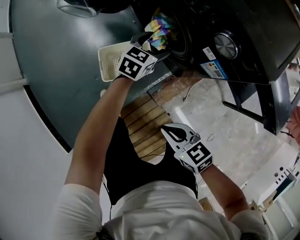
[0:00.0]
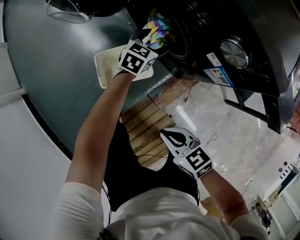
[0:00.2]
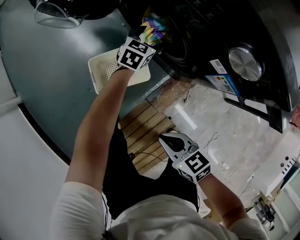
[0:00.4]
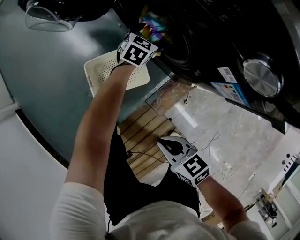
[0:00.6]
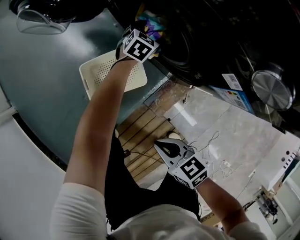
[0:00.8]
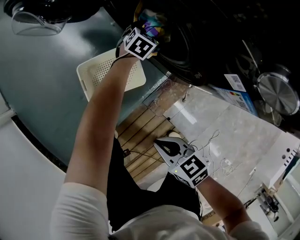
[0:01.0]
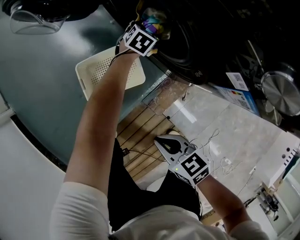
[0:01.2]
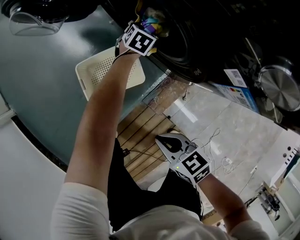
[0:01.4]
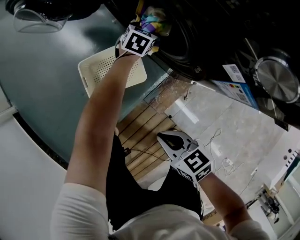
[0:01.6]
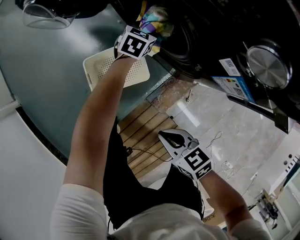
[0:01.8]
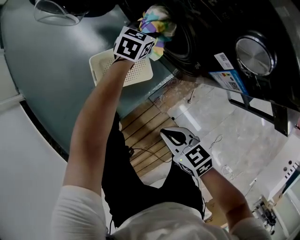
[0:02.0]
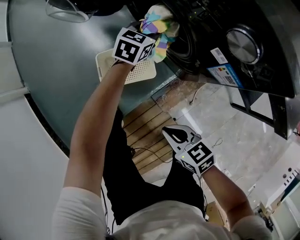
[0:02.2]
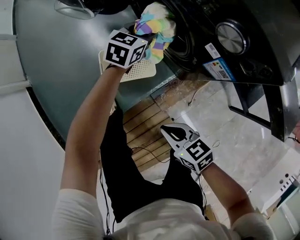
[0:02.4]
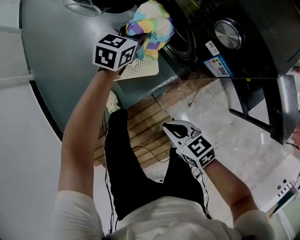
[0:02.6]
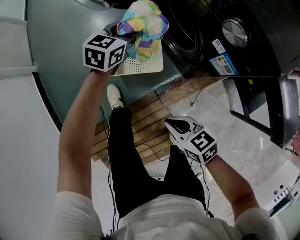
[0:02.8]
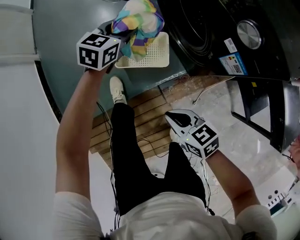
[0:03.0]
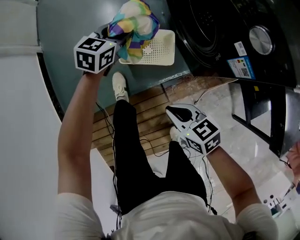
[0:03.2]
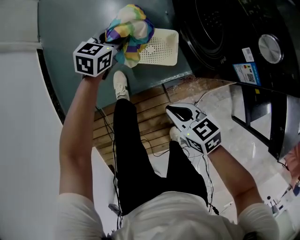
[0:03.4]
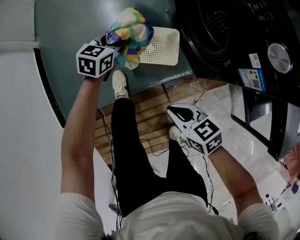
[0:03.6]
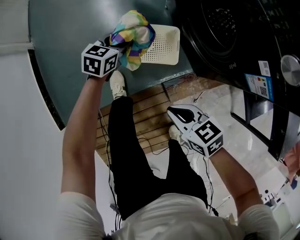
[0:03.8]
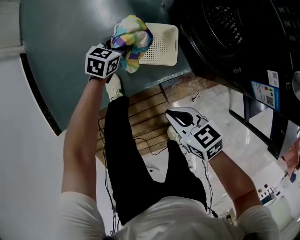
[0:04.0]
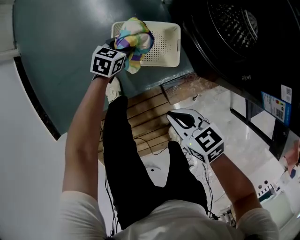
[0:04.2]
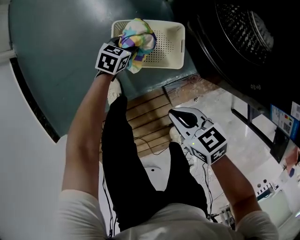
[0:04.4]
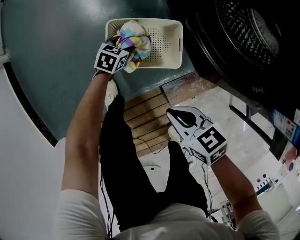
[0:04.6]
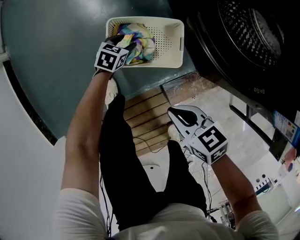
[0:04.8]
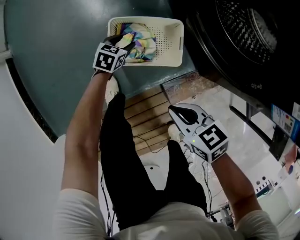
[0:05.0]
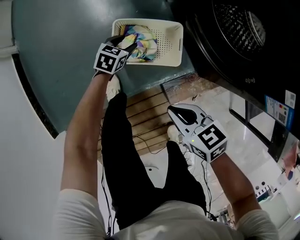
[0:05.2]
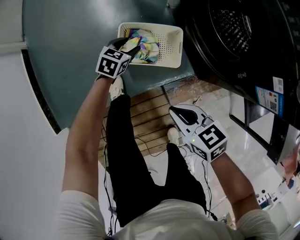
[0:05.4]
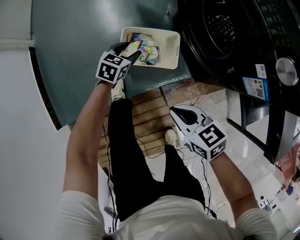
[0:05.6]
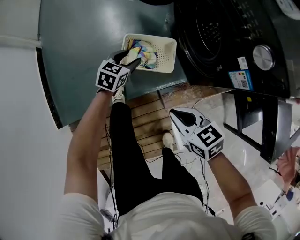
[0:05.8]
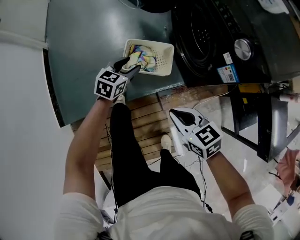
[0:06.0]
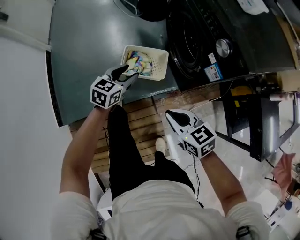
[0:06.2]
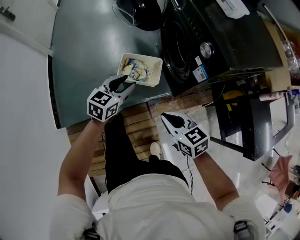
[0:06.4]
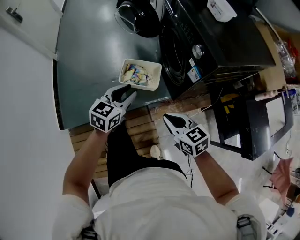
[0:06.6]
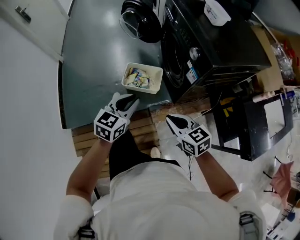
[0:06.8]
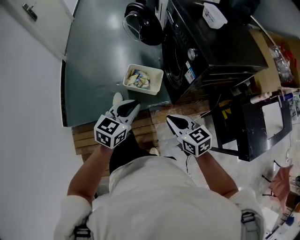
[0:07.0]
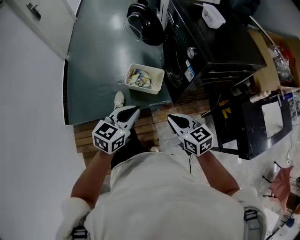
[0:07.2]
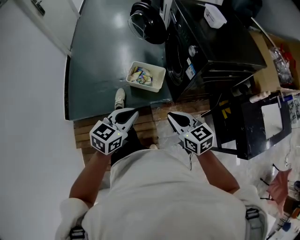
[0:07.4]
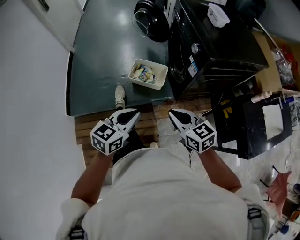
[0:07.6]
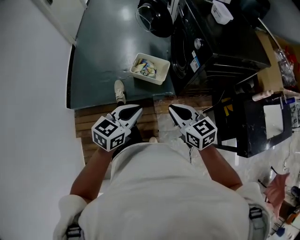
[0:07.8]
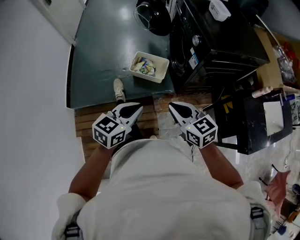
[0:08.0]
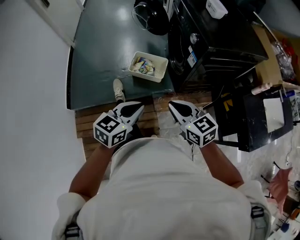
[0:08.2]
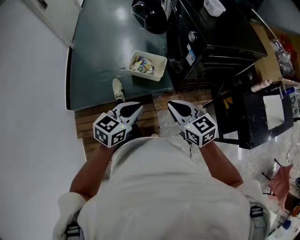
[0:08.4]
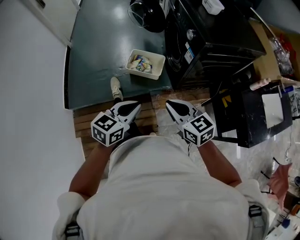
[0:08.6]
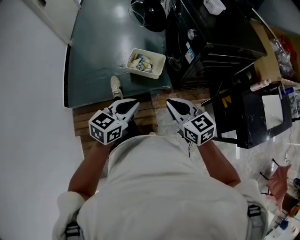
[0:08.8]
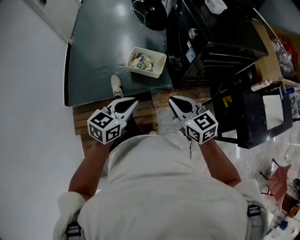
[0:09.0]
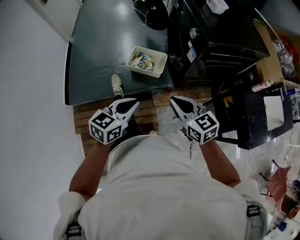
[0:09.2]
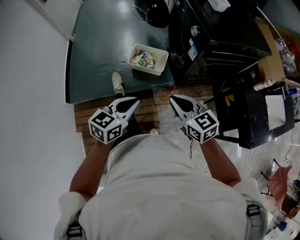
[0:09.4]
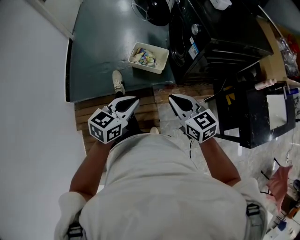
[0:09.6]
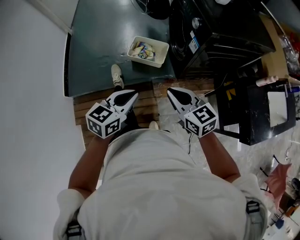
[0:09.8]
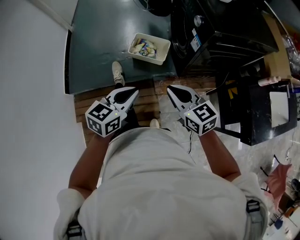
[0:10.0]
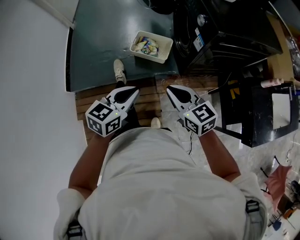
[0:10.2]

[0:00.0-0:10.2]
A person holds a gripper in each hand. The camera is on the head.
0:00.0 to 0:01.4: The right gripper shifts roughly 10 cm downward. The left gripper shifts about 25 cm downward and forward, and closes its fingers.
0:01.4 to 0:03.0: The left gripper goes some 35 cm upward and to the left, and swivels approximately 30 degrees; the right gripper shifts about 10 cm upward and backward, and turns by some 20 degrees.
0:03.0 to 0:04.4: The right gripper moves downward and forward, roughly 15 cm. Meanwhile the left gripper moves downward, about 35 cm, and rotates about 20 degrees.
0:04.4 to 0:05.8: The grippers both shift upward and backward by about 20 cm.
0:05.8 to 0:07.2: The left gripper shifts roughly 50 cm backward and upward, rotates about 20 degrees, and closes. The right gripper goes roughly 30 cm upward and backward.
0:07.2 to 0:08.8: The right gripper is displaced backward by approximately 5 cm, while the left gripper moves backward, roughly 10 cm.
0:08.8 to 0:10.2: The grippers make only small movements.

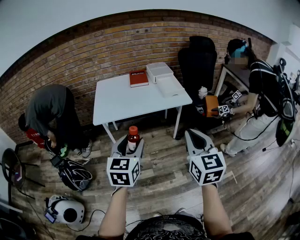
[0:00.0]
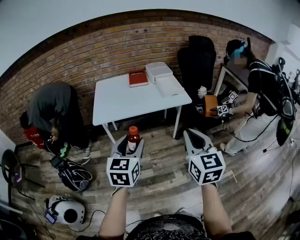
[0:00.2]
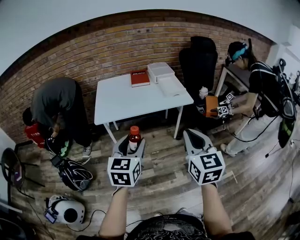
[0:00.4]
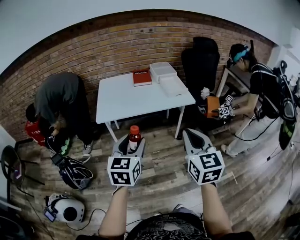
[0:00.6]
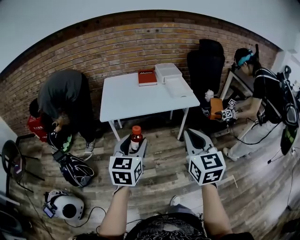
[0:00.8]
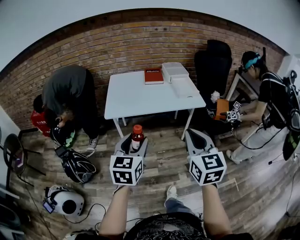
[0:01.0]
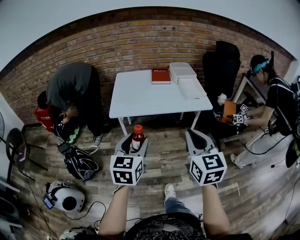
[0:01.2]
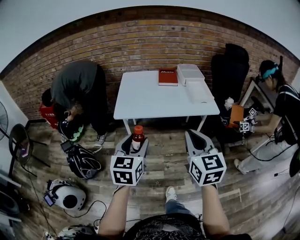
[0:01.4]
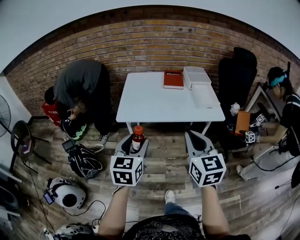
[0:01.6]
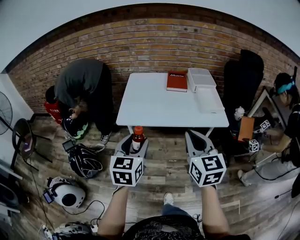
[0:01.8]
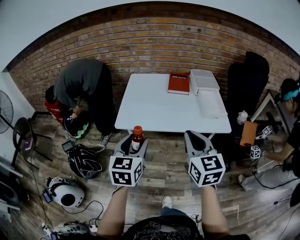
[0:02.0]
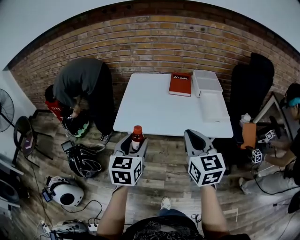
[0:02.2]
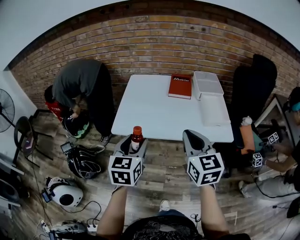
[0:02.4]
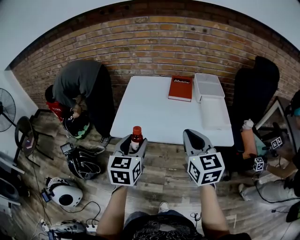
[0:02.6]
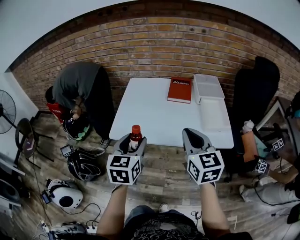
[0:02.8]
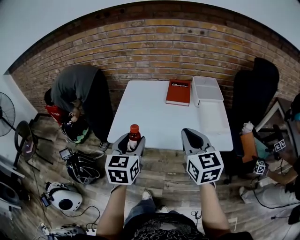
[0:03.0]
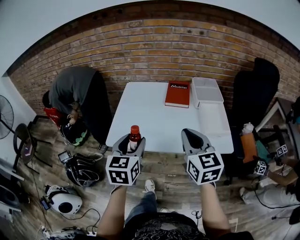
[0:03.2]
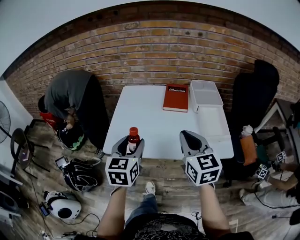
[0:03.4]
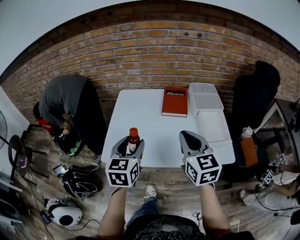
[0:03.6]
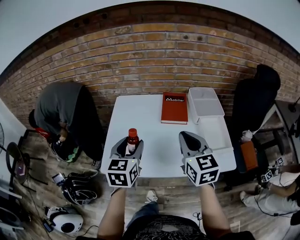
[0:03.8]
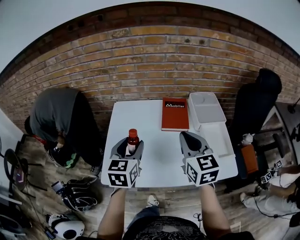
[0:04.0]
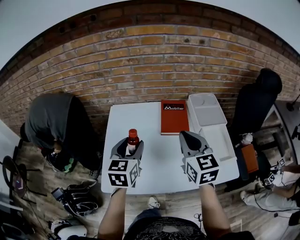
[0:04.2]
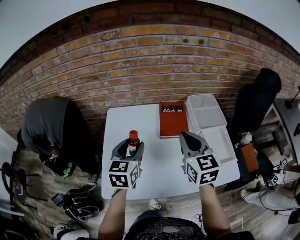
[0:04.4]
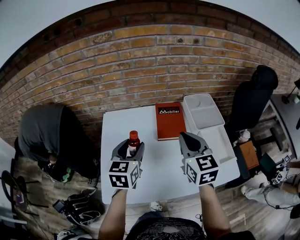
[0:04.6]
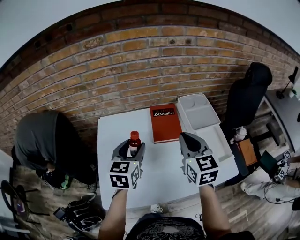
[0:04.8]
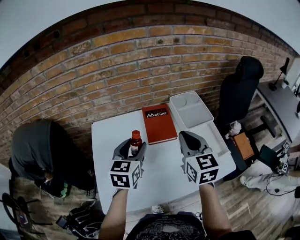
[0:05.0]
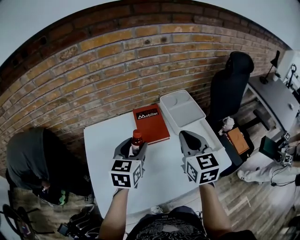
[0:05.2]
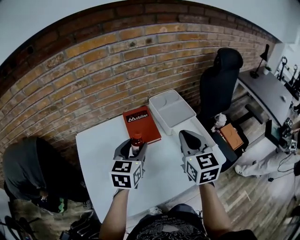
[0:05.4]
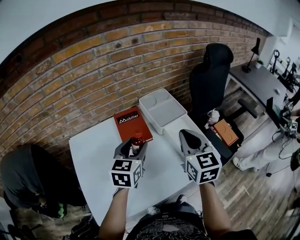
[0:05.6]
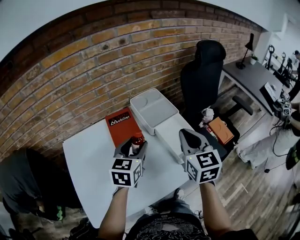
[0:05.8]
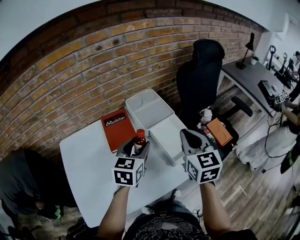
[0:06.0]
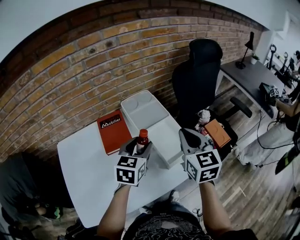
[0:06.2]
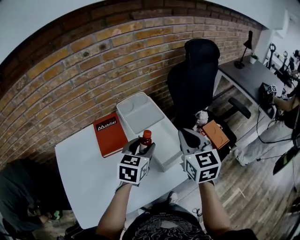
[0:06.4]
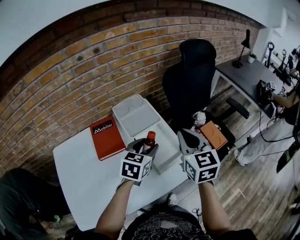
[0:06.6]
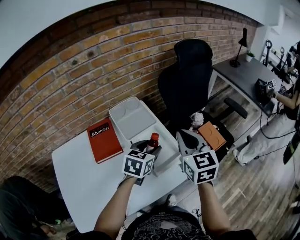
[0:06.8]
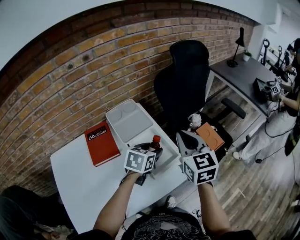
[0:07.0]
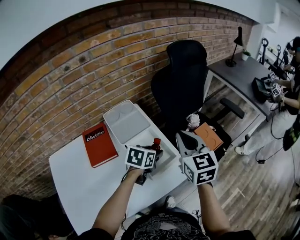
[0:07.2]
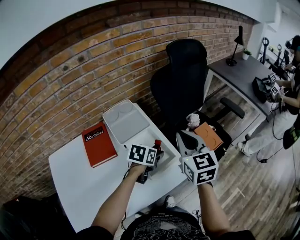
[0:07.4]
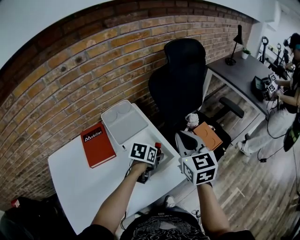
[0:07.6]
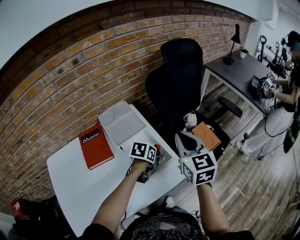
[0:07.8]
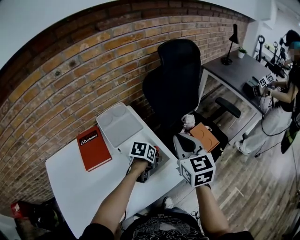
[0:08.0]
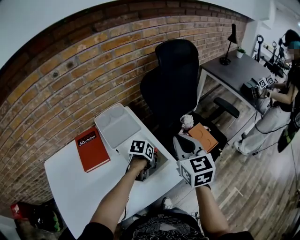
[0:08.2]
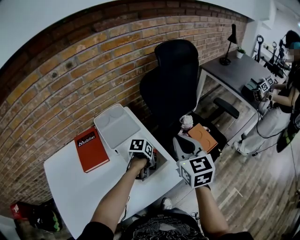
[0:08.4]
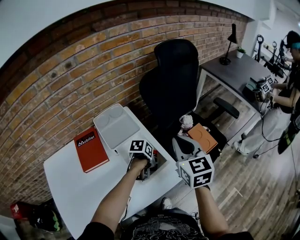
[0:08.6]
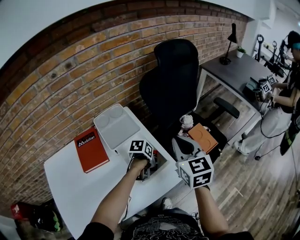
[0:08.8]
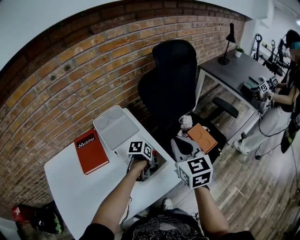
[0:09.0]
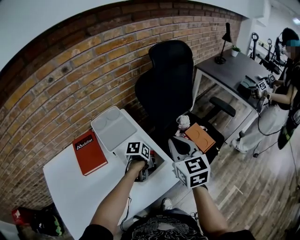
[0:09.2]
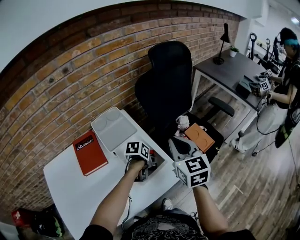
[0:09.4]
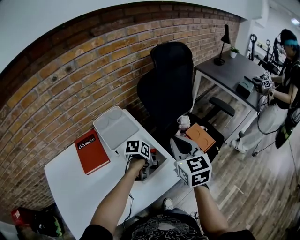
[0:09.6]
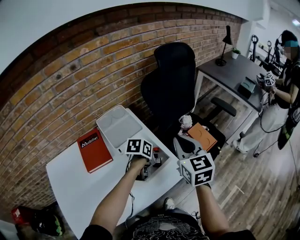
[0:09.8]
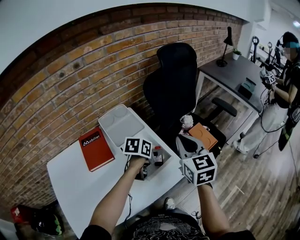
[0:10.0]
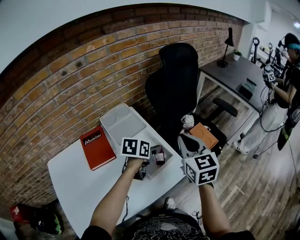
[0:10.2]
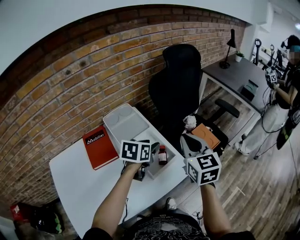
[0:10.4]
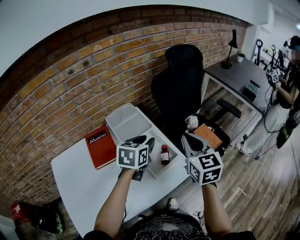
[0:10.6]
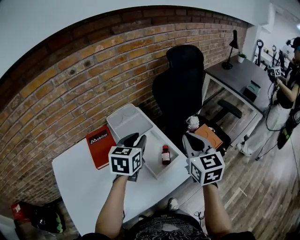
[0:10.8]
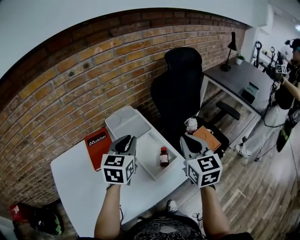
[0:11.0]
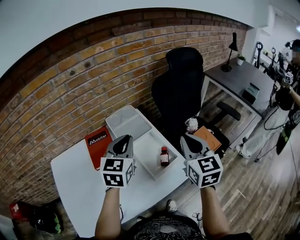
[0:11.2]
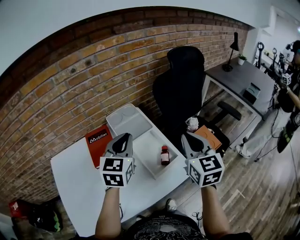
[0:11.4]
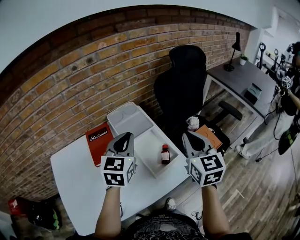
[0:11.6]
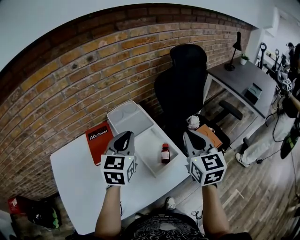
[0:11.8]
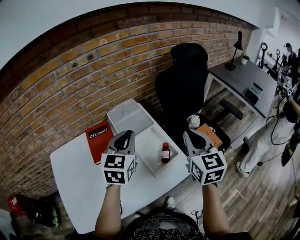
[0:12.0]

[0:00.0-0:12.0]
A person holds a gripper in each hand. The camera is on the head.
0:00.0 to 0:01.6: The right gripper shifts approximately 15 cm forward and to the left, while the left gripper heads to the left and forward, covering approximately 15 cm.
0:01.6 to 0:03.0: The two grippers go some 20 cm forward.
0:03.0 to 0:04.4: Both grippers travel together forward, approximately 30 cm.
0:04.4 to 0:06.0: The left gripper moves about 25 cm, and swivels some 30 degrees. Meanwhile the right gripper moves approximately 25 cm, and swivels some 30 degrees.
0:06.0 to 0:07.6: The left gripper heads to the right, downward and forward, covering some 25 cm, and turns by some 40 degrees, while the right gripper shifts about 15 cm to the right and forward.
0:07.6 to 0:09.0: The left gripper heads downward, covering some 5 cm, and changes its angle by about 20 degrees.
0:09.0 to 0:10.4: The left gripper goes some 15 cm upward, and rotates roughly 40 degrees.
0:10.4 to 0:12.0: The left gripper shifts roughly 15 cm upward and to the left, turns by approximately 40 degrees, and closes.

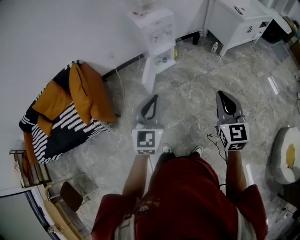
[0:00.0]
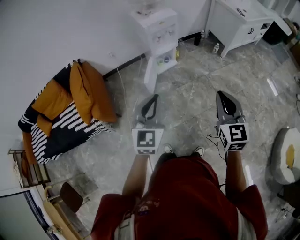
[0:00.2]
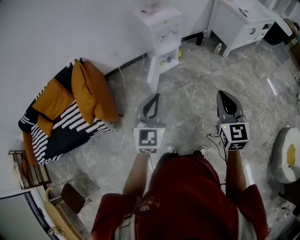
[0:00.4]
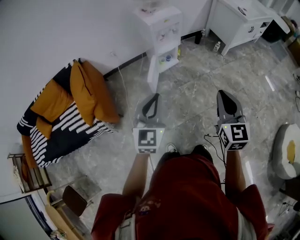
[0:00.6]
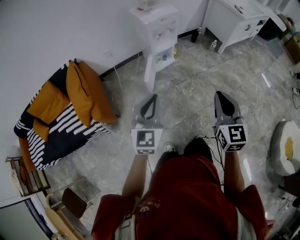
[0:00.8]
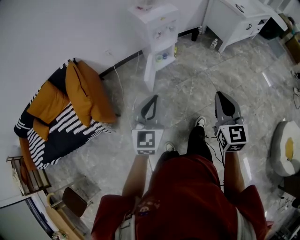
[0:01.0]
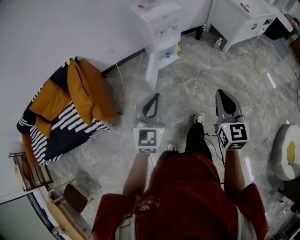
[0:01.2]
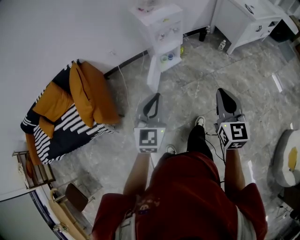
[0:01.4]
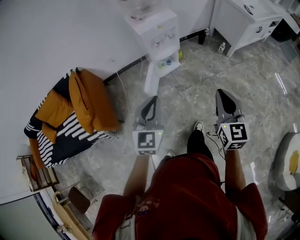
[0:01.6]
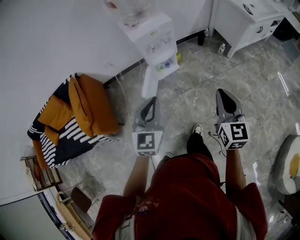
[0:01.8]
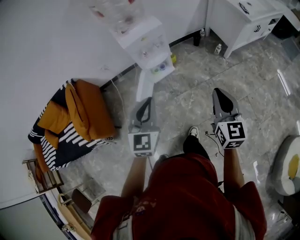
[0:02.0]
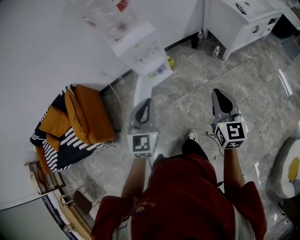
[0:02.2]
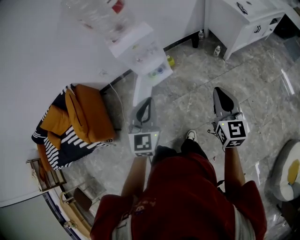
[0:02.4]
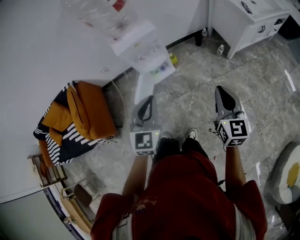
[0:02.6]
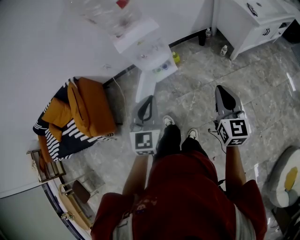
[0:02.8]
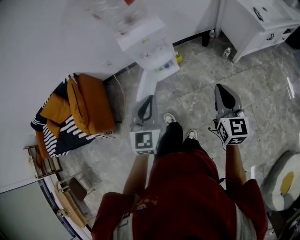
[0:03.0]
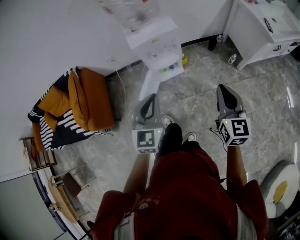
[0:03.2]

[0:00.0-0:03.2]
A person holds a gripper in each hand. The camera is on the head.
0:00.0 to 0:01.6: Both grippers move forward, some 15 cm.
0:01.6 to 0:03.2: Both grippers travel together forward and to the right, roughly 25 cm.
